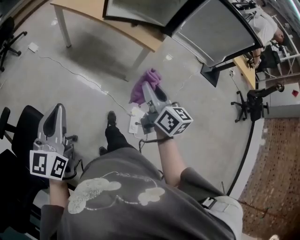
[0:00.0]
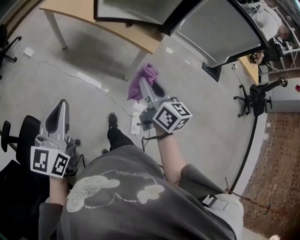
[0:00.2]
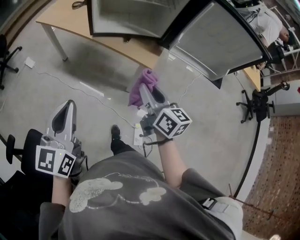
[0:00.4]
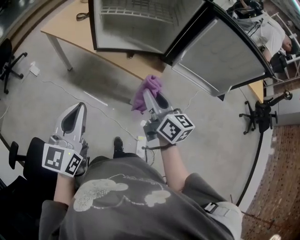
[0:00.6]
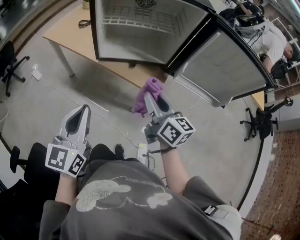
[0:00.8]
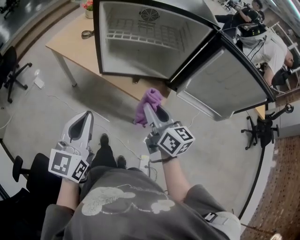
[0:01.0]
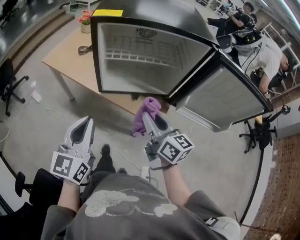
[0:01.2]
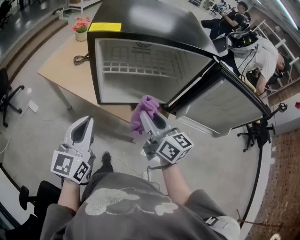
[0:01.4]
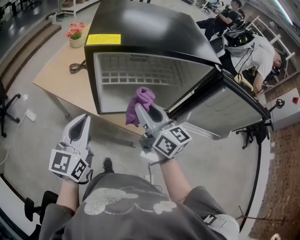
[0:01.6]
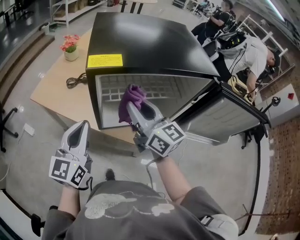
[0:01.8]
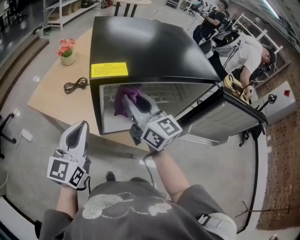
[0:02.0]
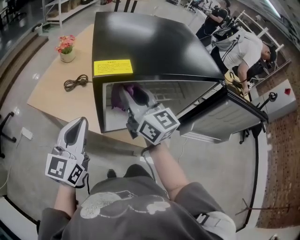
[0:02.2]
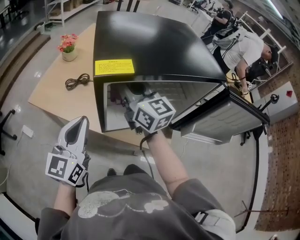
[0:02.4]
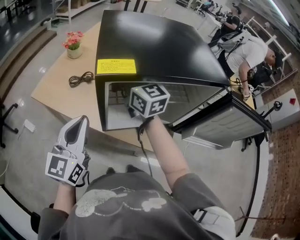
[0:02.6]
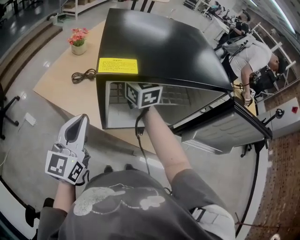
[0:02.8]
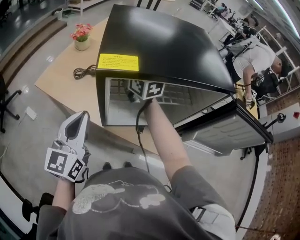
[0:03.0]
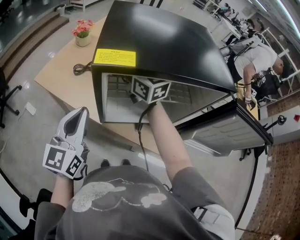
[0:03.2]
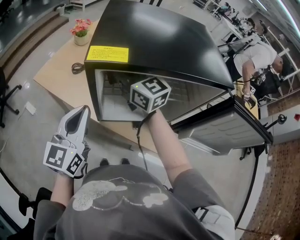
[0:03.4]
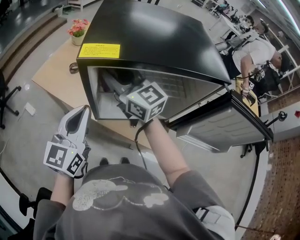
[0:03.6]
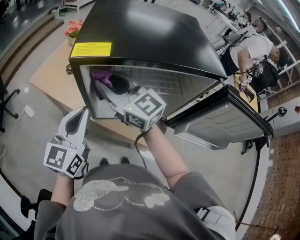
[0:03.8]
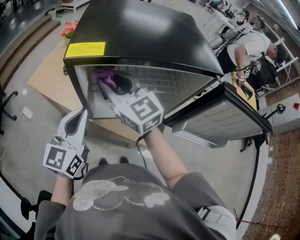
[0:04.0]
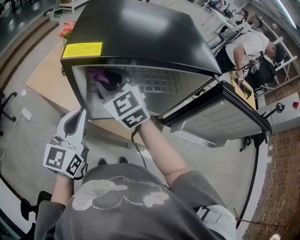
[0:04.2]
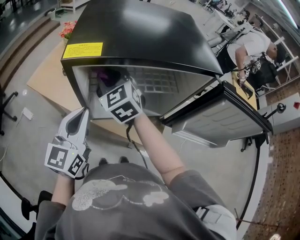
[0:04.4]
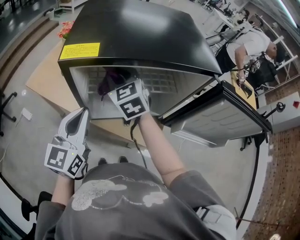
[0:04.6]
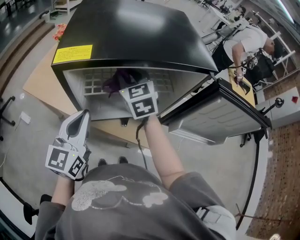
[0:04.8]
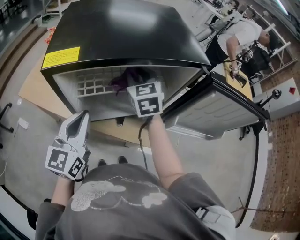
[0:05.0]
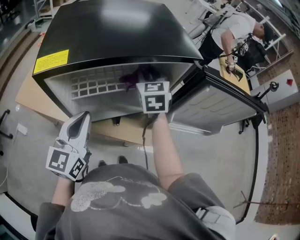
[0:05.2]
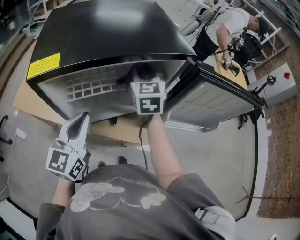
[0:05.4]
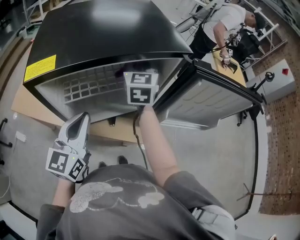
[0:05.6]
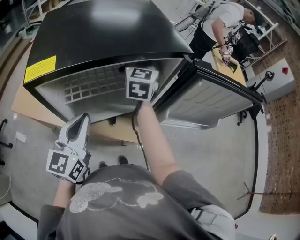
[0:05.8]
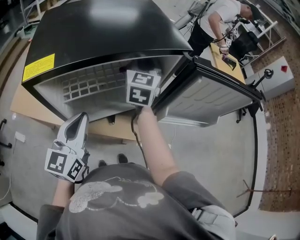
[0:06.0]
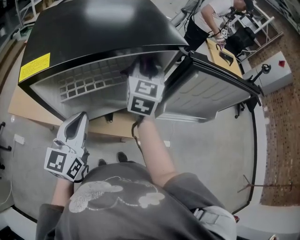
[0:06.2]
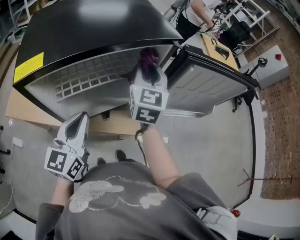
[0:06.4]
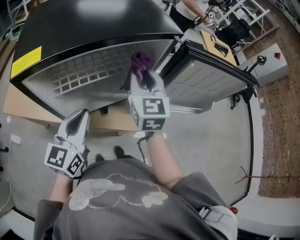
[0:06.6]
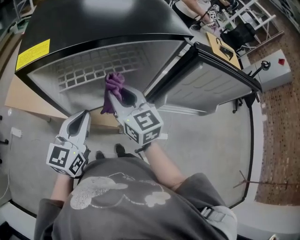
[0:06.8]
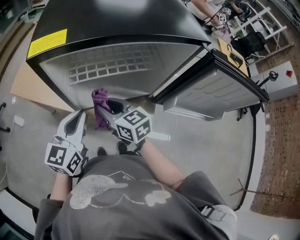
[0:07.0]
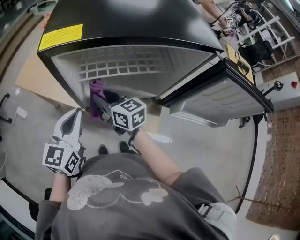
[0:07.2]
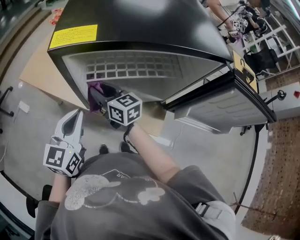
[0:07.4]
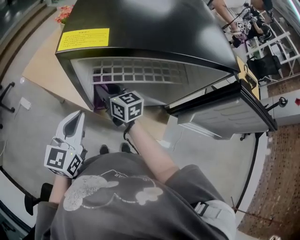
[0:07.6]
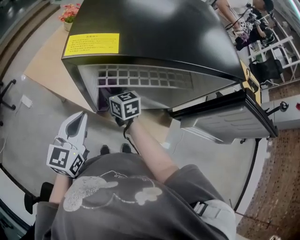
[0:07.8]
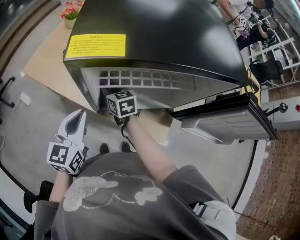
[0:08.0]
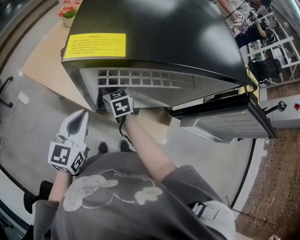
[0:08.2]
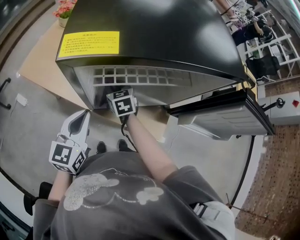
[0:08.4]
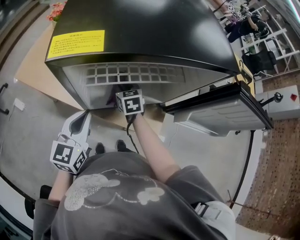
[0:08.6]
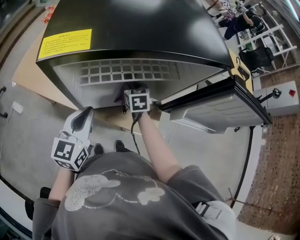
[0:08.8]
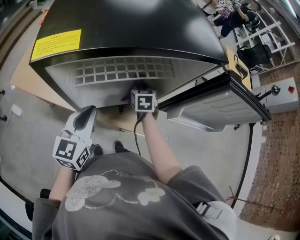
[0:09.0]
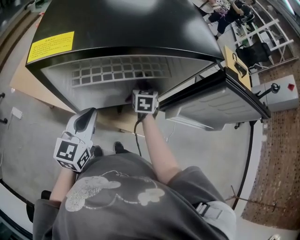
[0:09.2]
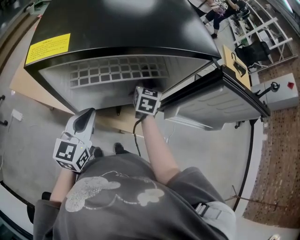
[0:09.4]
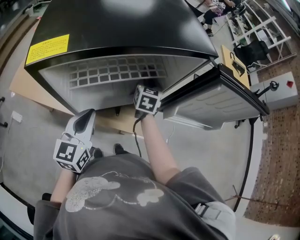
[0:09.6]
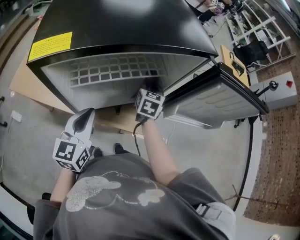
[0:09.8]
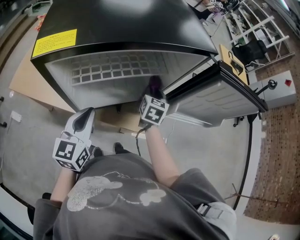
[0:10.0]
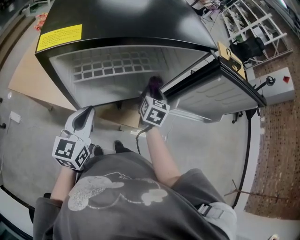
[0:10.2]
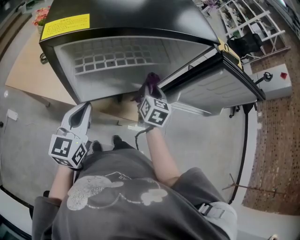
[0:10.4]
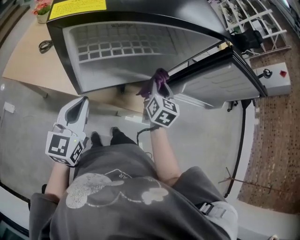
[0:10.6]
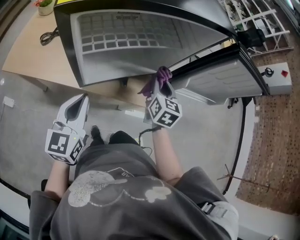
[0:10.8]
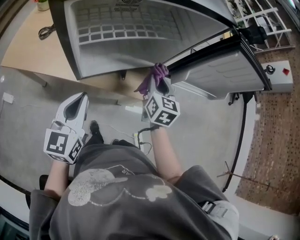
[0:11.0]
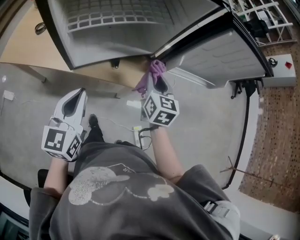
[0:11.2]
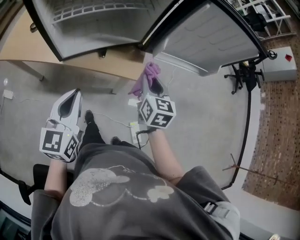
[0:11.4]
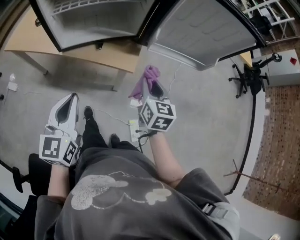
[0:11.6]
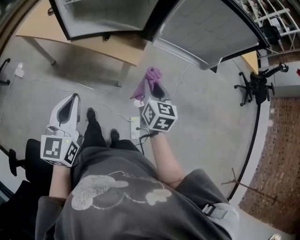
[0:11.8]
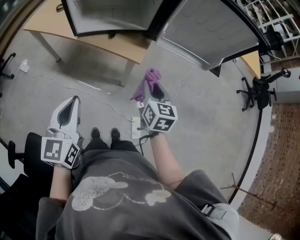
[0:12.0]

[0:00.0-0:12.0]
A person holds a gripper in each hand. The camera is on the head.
0:00.0 to 0:01.6: The grippers both shift forward by about 40 cm.
0:01.6 to 0:03.0: The left gripper goes some 5 cm forward; the right gripper goes roughly 25 cm forward and to the left.
0:03.0 to 0:04.4: The left gripper travels to the right by about 5 cm, while the right gripper heads backward, covering some 10 cm, and swivels approximately 30 degrees.
0:04.4 to 0:06.0: The right gripper shifts by about 25 cm, and turns by approximately 50 degrees. The left gripper ends up approximately 5 cm from where it was.
0:06.0 to 0:07.6: The right gripper moves some 35 cm, and swivels approximately 60 degrees, while the left gripper moves approximately 10 cm.
0:07.6 to 0:09.0: The left gripper changes place by some 10 cm. Meanwhile the right gripper changes place by about 25 cm, and turns by about 50 degrees.
0:09.0 to 0:10.4: The right gripper goes approximately 10 cm upward, backward and to the right, and changes its angle by some 20 degrees.
0:10.4 to 0:12.0: The two grippers go about 30 cm backward and to the right.

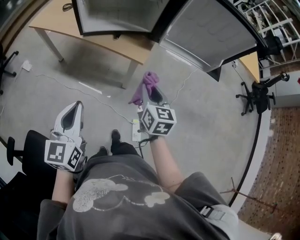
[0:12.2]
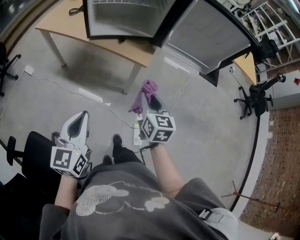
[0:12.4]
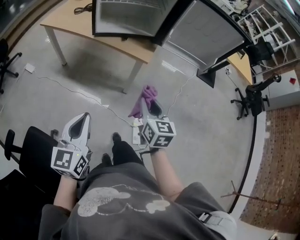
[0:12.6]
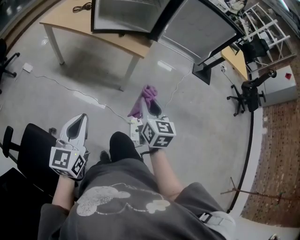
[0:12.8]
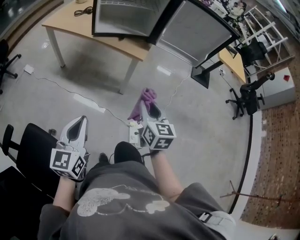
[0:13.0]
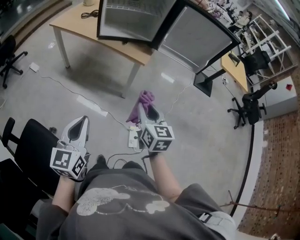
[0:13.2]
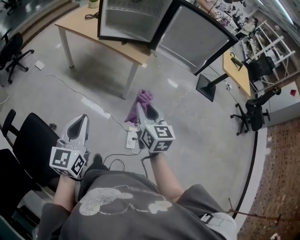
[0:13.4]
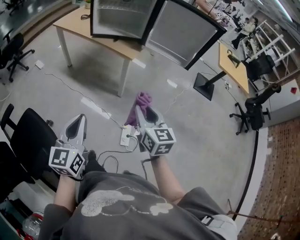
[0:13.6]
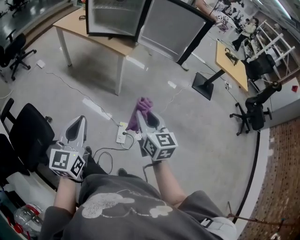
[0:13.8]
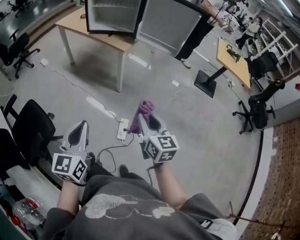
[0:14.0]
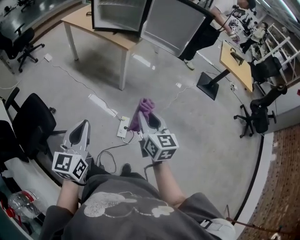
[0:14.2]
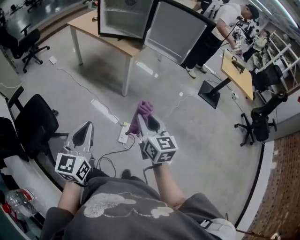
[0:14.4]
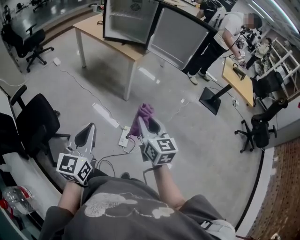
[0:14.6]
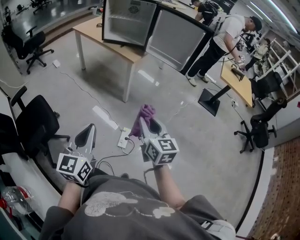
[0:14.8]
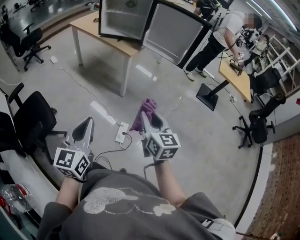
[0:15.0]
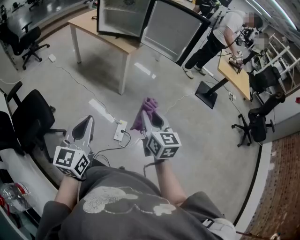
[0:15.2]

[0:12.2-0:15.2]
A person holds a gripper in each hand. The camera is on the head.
0:12.2 to 0:13.8: The grippers both shift backward and to the right by some 35 cm. The right gripper changes its angle by approximately 20 degrees.
0:13.8 to 0:15.2: The two grippers go approximately 10 cm backward and to the right.

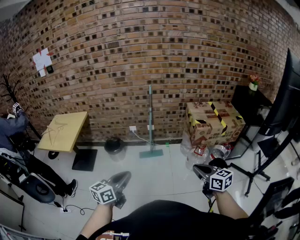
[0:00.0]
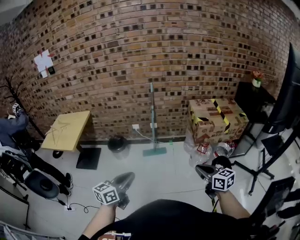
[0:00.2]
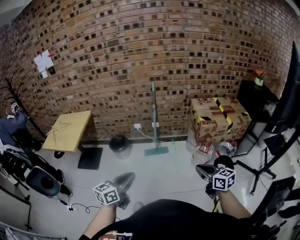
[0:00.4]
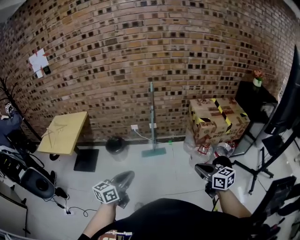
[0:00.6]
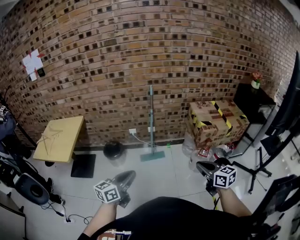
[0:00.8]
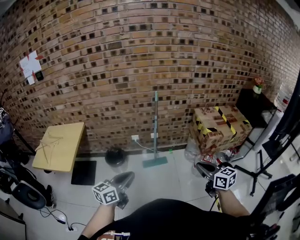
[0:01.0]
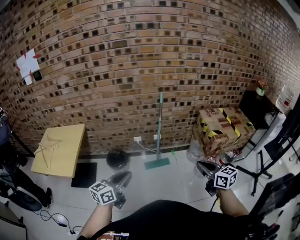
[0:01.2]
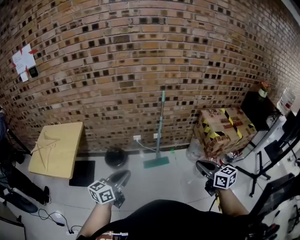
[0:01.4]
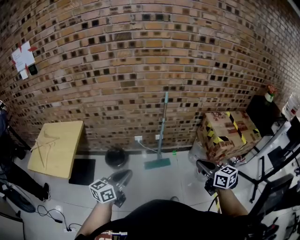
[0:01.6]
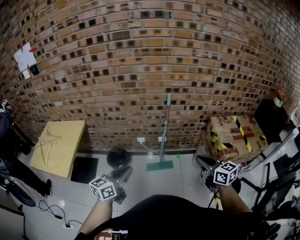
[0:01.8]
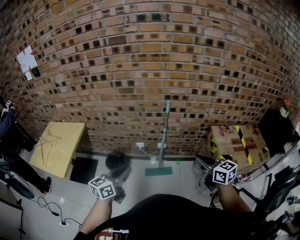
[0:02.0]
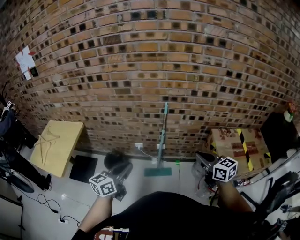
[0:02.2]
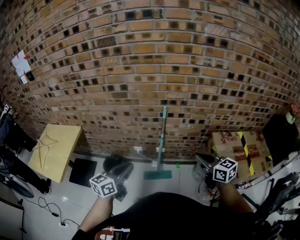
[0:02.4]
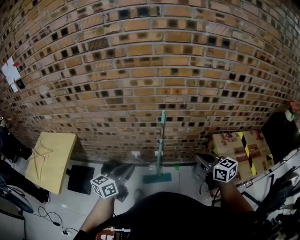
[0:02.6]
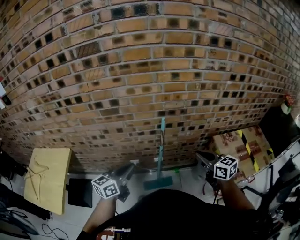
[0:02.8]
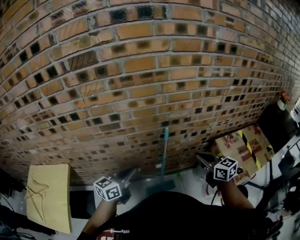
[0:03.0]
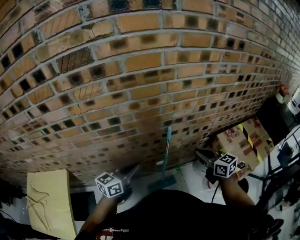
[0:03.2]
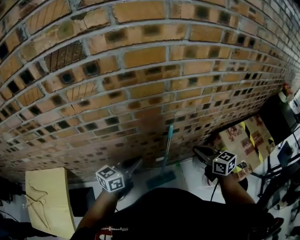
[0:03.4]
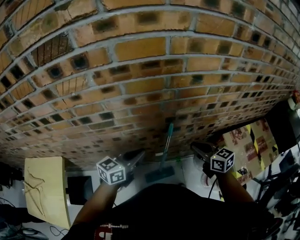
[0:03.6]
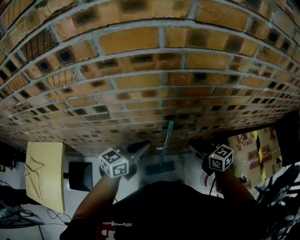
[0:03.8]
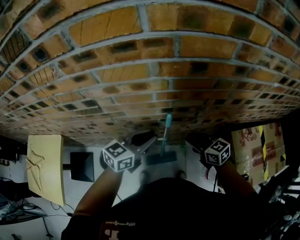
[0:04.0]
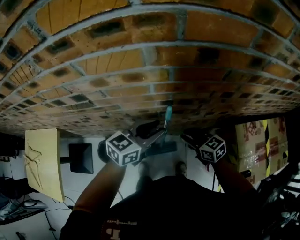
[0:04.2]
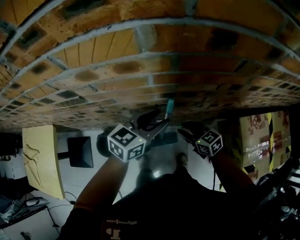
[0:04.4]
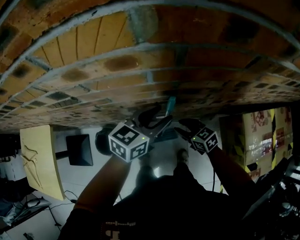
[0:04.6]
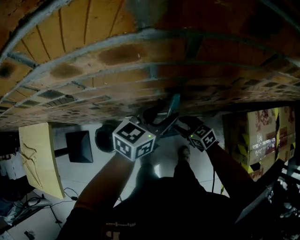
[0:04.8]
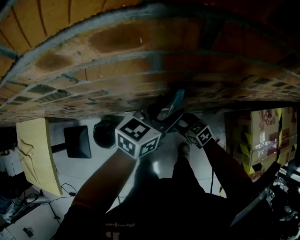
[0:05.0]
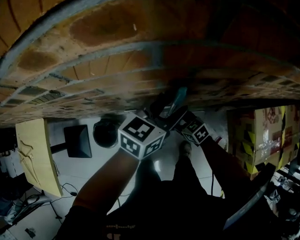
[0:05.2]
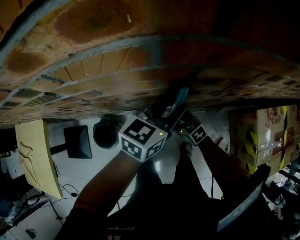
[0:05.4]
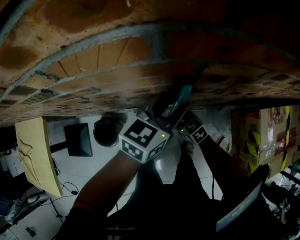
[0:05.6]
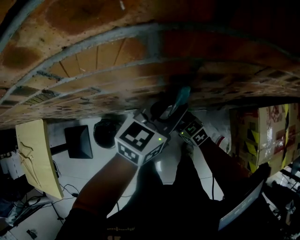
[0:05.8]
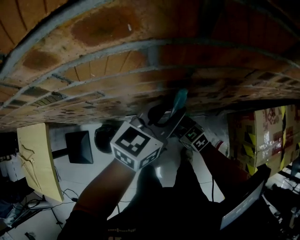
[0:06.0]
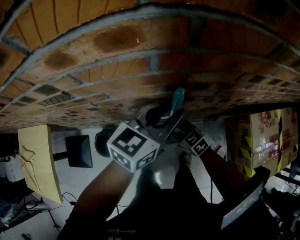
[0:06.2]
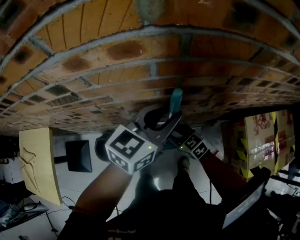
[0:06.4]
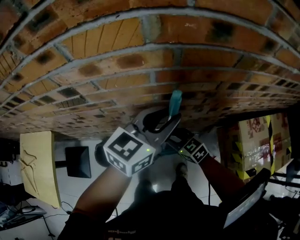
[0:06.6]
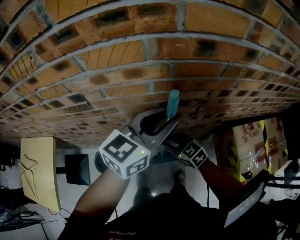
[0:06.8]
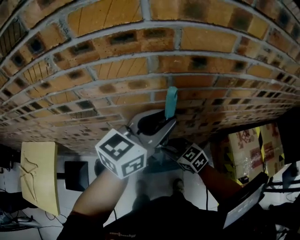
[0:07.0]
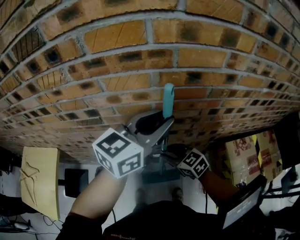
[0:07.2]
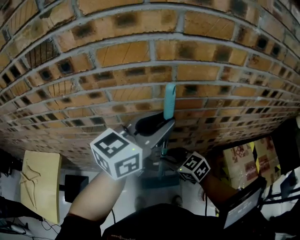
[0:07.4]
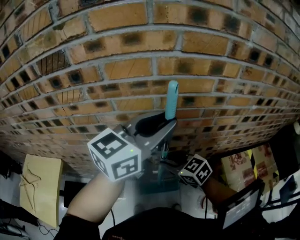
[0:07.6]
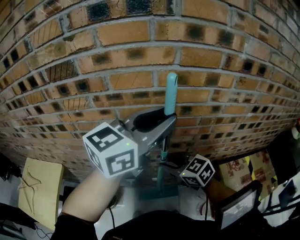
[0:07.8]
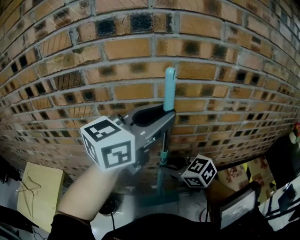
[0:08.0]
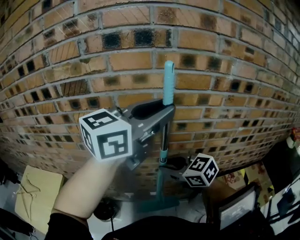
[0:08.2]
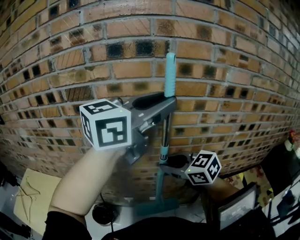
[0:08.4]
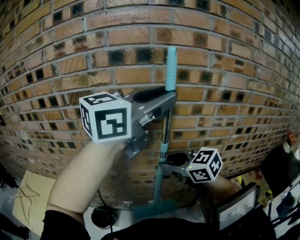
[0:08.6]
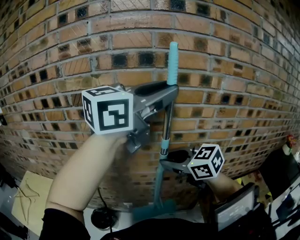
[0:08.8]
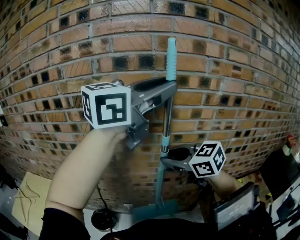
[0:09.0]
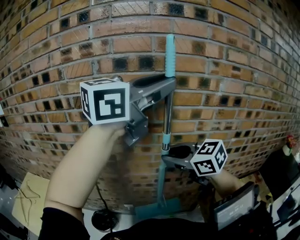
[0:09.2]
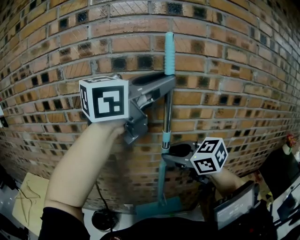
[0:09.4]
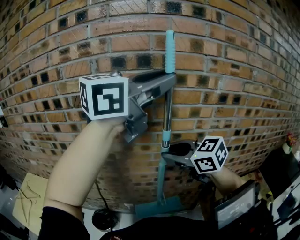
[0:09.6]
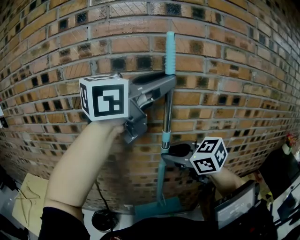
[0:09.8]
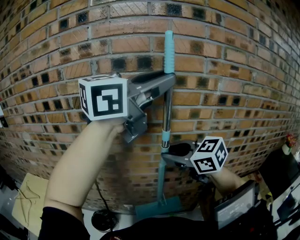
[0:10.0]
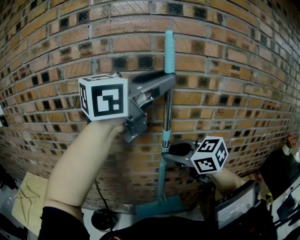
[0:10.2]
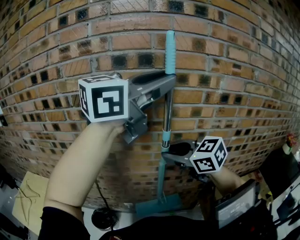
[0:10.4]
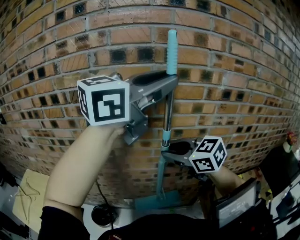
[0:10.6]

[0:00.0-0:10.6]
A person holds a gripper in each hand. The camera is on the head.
0:00.0 to 0:01.6: Both grippers travel together forward and to the left, approximately 35 cm.
0:01.6 to 0:03.0: The two grippers go about 40 cm forward.
0:03.0 to 0:04.6: The right gripper moves downward and forward, approximately 30 cm, rotates approximately 30 degrees, and opens its fingers, while the left gripper is displaced forward, to the right and downward by approximately 25 cm, and opens.
0:04.6 to 0:06.0: The right gripper shifts about 10 cm downward and to the left.
0:06.0 to 0:07.6: Both grippers move upward, roughly 35 cm. The left gripper rotates about 20 degrees.
0:07.6 to 0:09.0: Both grippers travel together upward, roughly 25 cm.
0:09.0 to 0:10.6: The grippers move only a little.
